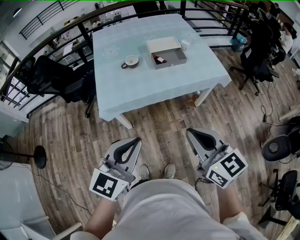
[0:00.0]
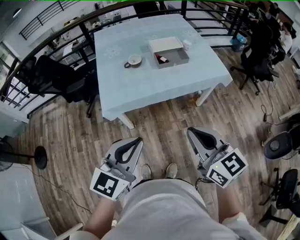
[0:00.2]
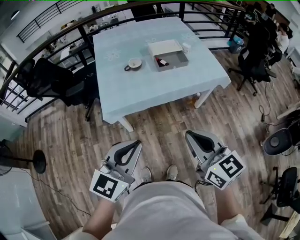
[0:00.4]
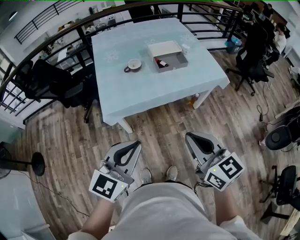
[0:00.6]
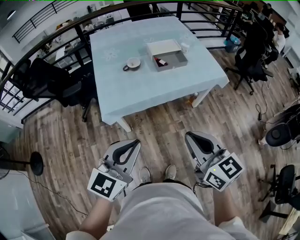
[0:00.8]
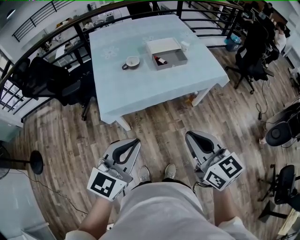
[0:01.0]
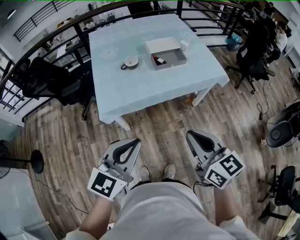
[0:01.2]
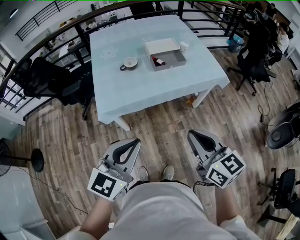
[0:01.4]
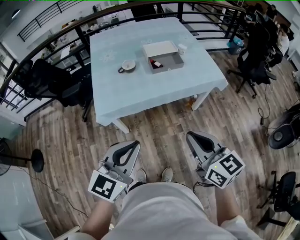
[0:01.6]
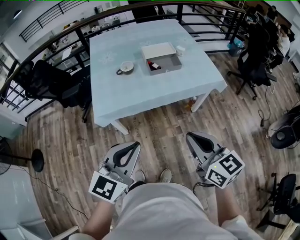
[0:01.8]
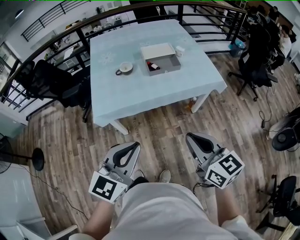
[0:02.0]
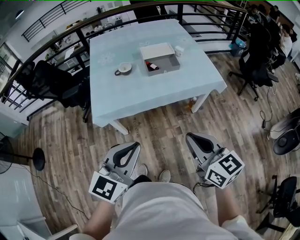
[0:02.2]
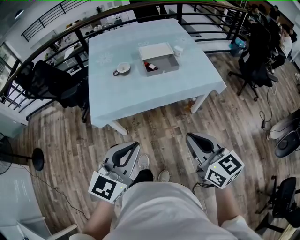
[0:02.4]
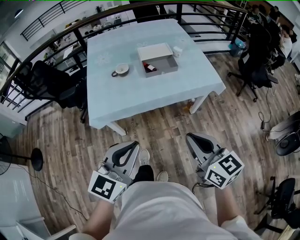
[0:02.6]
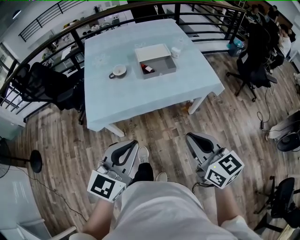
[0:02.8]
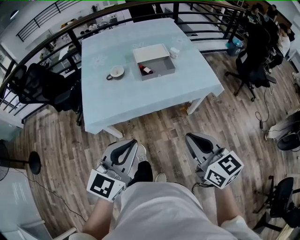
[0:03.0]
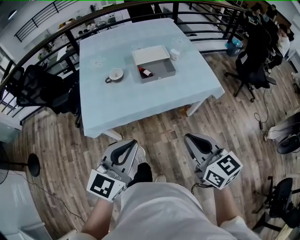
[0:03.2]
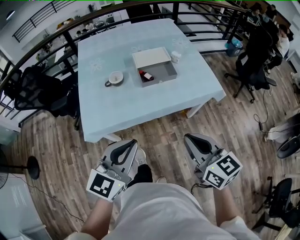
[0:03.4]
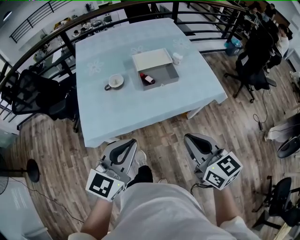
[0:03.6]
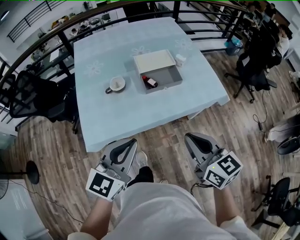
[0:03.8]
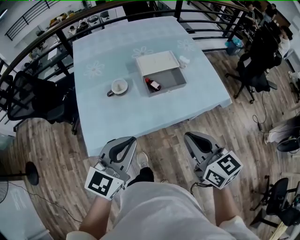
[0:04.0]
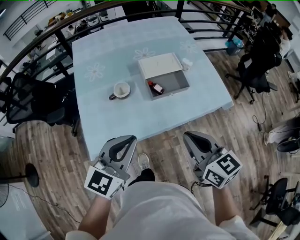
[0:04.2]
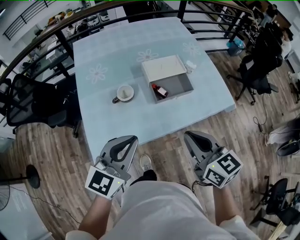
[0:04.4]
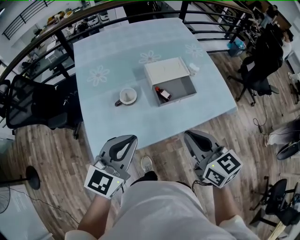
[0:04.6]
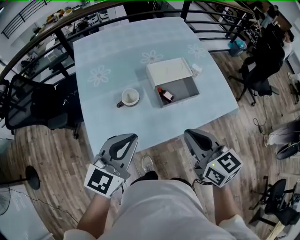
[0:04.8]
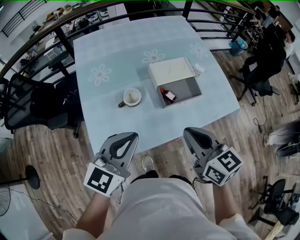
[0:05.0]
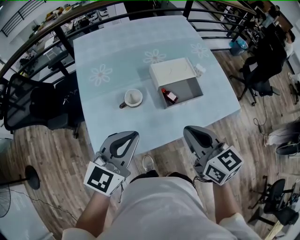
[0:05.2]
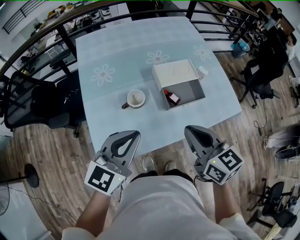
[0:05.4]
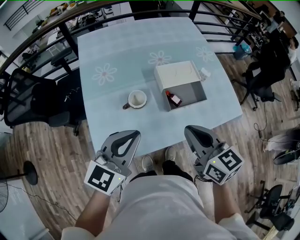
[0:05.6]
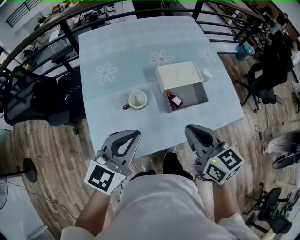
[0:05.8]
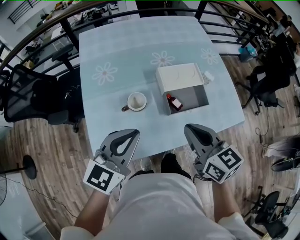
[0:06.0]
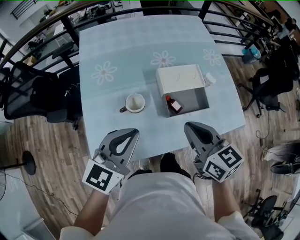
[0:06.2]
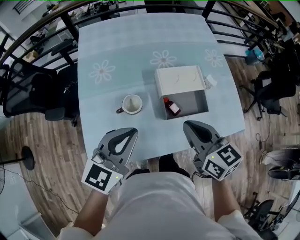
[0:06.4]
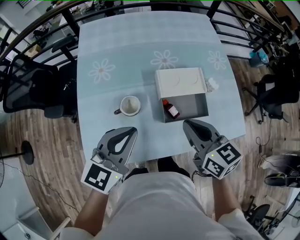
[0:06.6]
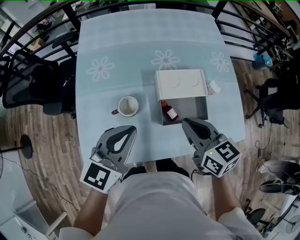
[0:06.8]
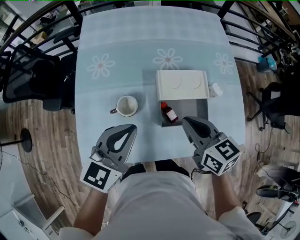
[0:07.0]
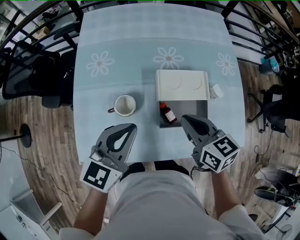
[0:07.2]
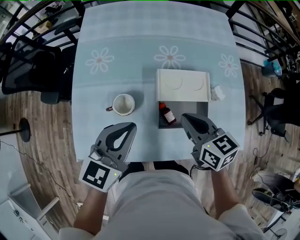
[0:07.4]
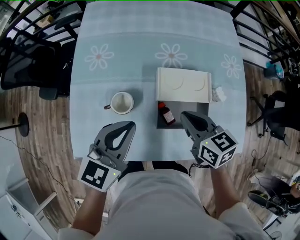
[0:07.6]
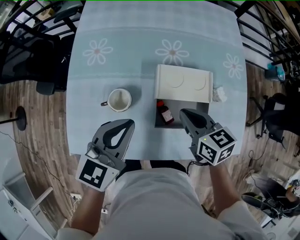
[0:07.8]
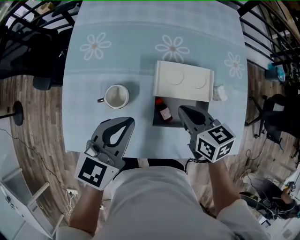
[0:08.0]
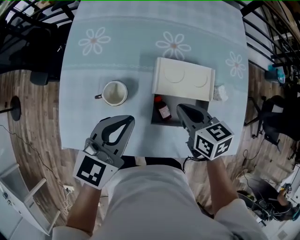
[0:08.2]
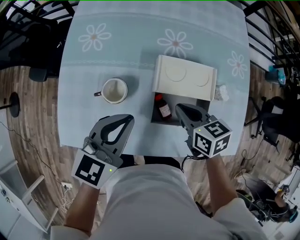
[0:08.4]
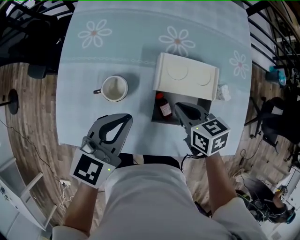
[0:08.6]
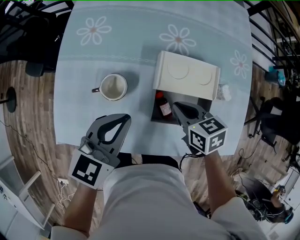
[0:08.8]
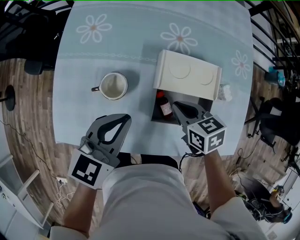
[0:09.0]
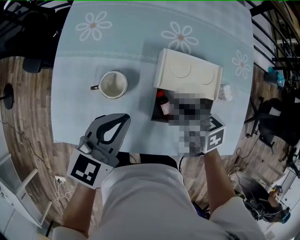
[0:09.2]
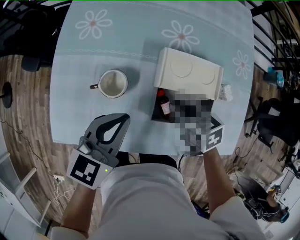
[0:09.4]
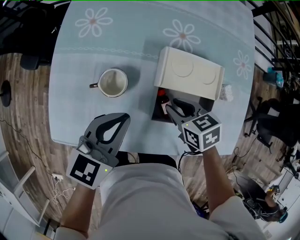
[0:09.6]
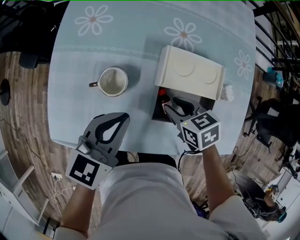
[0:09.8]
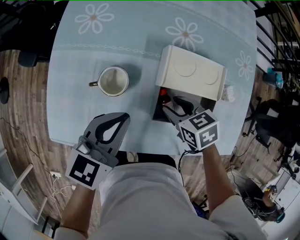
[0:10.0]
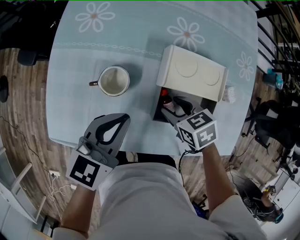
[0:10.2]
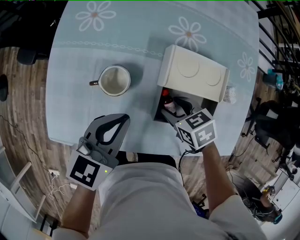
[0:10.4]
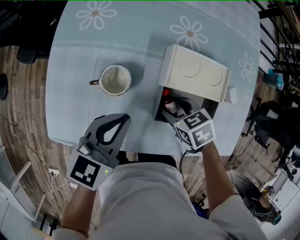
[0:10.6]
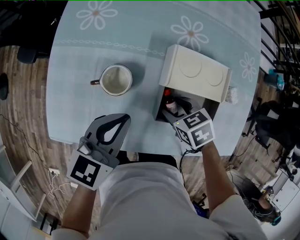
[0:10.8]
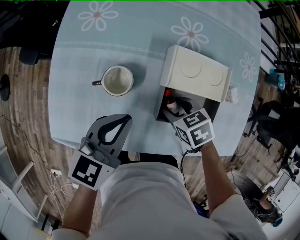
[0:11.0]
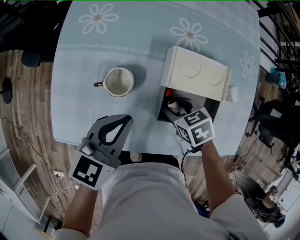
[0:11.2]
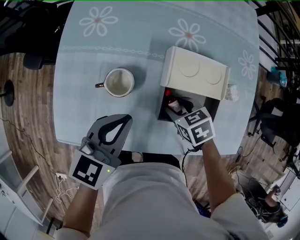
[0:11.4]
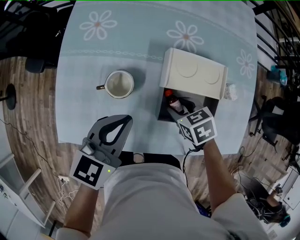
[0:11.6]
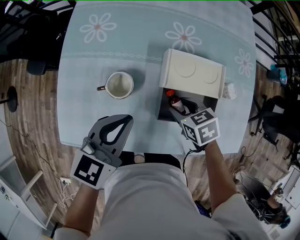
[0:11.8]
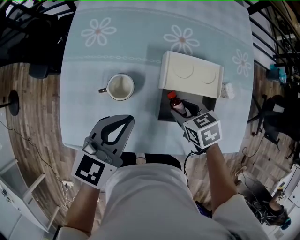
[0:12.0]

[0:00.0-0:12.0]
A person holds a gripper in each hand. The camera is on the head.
0:00.0 to 0:01.6: The grippers move only a little.
0:01.6 to 0:03.0: The left gripper is displaced forward and to the right by some 10 cm, while the right gripper moves to the right and forward, some 10 cm.
0:03.0 to 0:04.4: Both grippers move forward and to the left, roughly 30 cm.
0:04.4 to 0:06.0: The two grippers go roughly 15 cm forward and to the left.
0:06.0 to 0:07.6: The right gripper moves forward, downward and to the right, about 25 cm, and turns by about 20 degrees. Meanwhile the left gripper shifts roughly 15 cm forward, to the right and downward.
0:07.6 to 0:09.0: The right gripper moves downward, roughly 10 cm. Meanwhile the left gripper moves downward, about 5 cm.
0:09.0 to 0:10.4: The right gripper goes approximately 5 cm downward, and opens its fingers.
0:10.4 to 0:12.0: The grippers stay close to where they were, moving slightly.

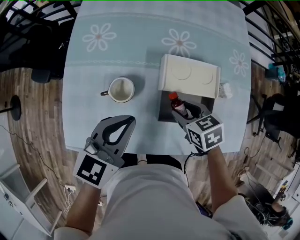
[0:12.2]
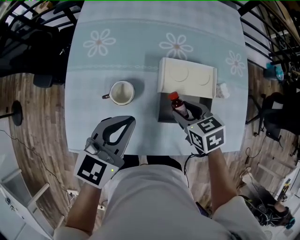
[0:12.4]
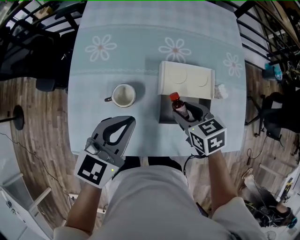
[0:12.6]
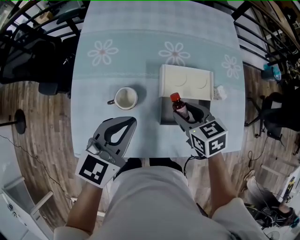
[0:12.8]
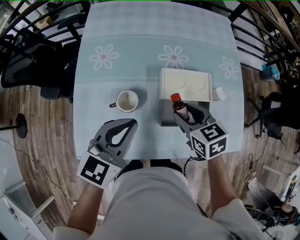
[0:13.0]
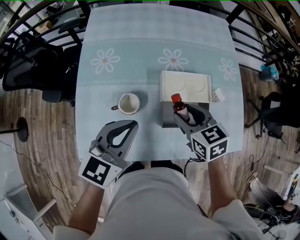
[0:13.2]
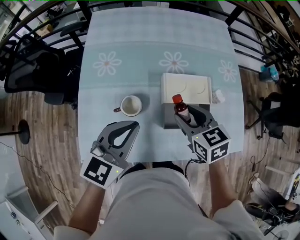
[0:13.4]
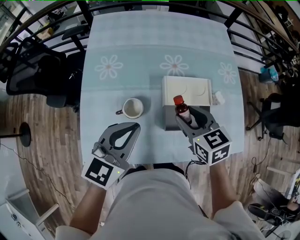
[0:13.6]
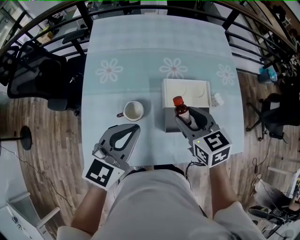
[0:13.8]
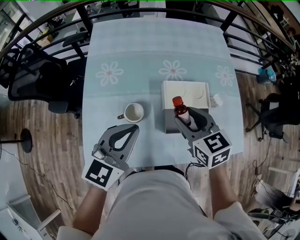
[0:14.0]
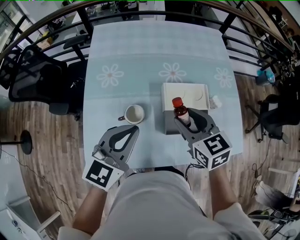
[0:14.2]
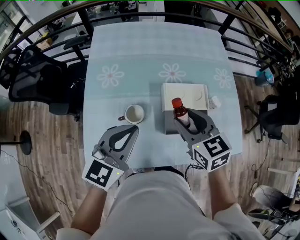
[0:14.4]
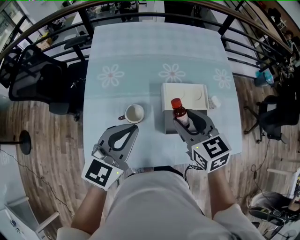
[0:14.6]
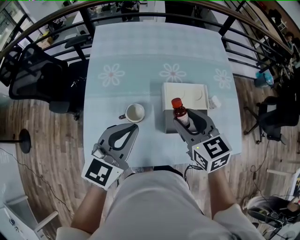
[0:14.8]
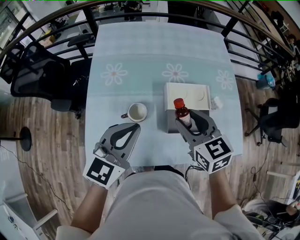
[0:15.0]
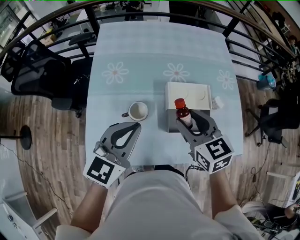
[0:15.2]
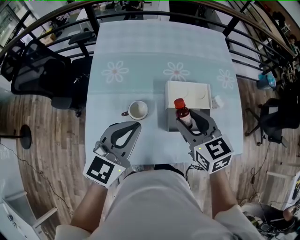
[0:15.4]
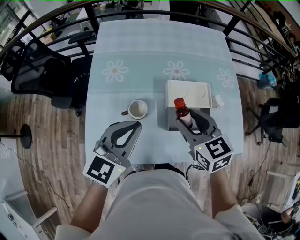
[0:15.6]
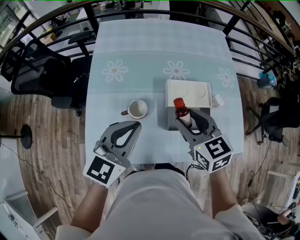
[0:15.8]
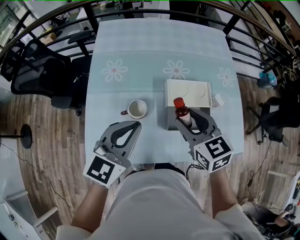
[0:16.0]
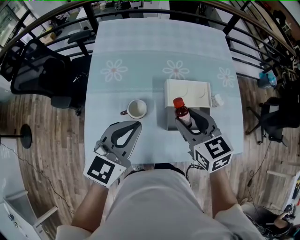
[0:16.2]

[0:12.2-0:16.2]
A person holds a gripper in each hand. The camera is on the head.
0:12.2 to 0:13.6: The left gripper moves upward, roughly 10 cm, while the right gripper shifts approximately 15 cm upward, and swivels roughly 20 degrees.
0:13.6 to 0:14.8: The right gripper goes approximately 5 cm upward.
0:14.8 to 0:16.2: Both grippers stay about where they are.

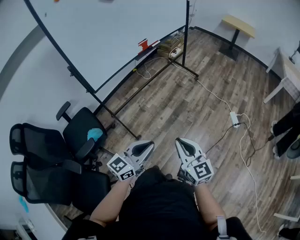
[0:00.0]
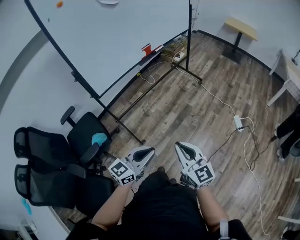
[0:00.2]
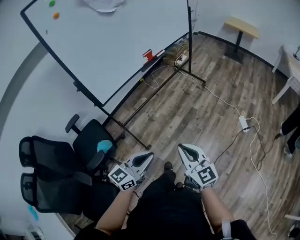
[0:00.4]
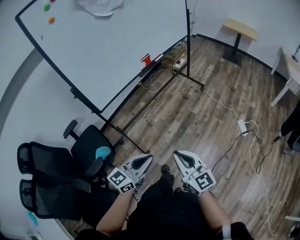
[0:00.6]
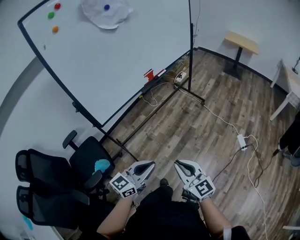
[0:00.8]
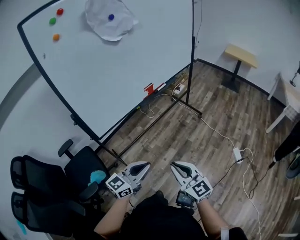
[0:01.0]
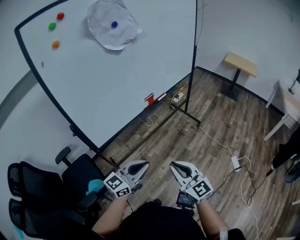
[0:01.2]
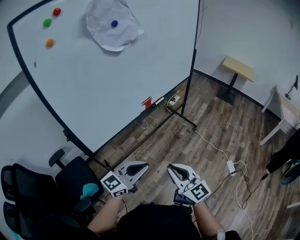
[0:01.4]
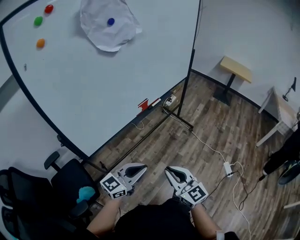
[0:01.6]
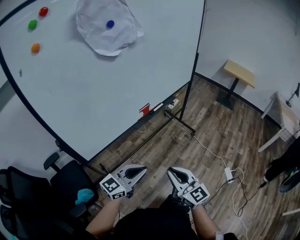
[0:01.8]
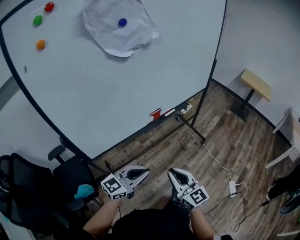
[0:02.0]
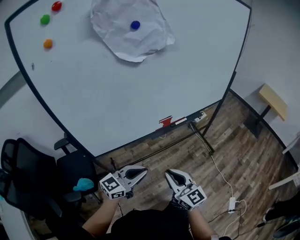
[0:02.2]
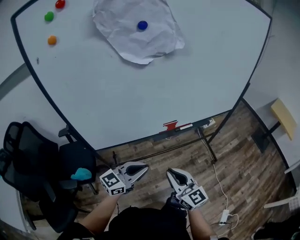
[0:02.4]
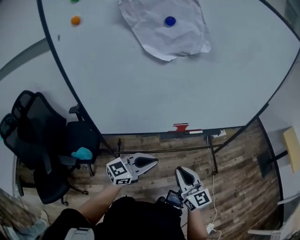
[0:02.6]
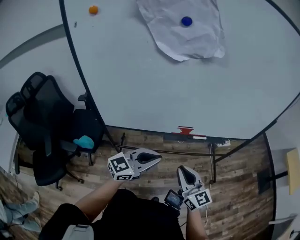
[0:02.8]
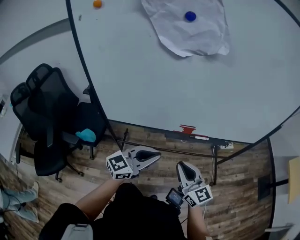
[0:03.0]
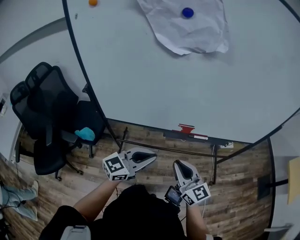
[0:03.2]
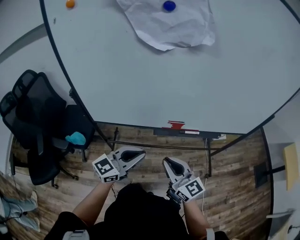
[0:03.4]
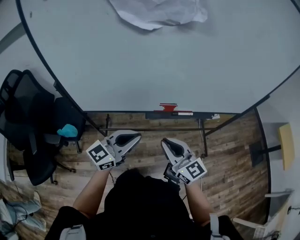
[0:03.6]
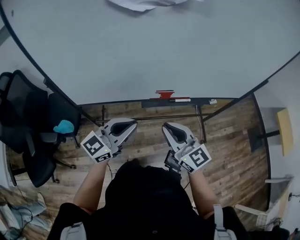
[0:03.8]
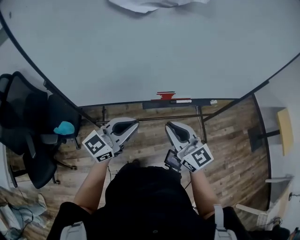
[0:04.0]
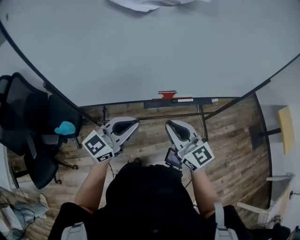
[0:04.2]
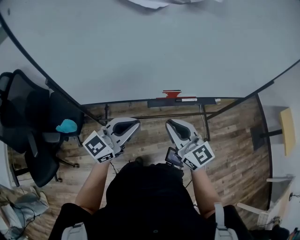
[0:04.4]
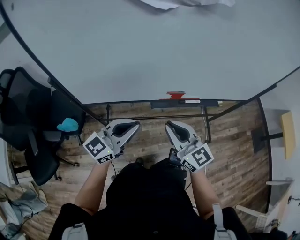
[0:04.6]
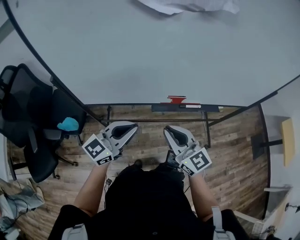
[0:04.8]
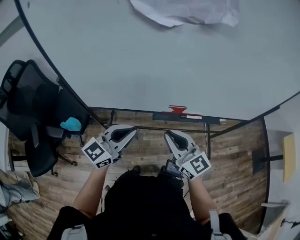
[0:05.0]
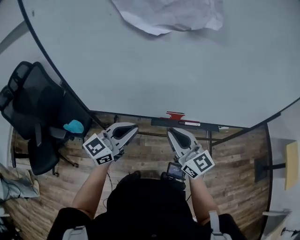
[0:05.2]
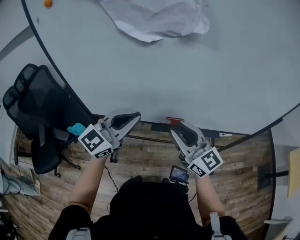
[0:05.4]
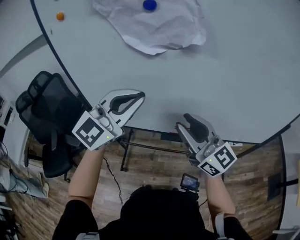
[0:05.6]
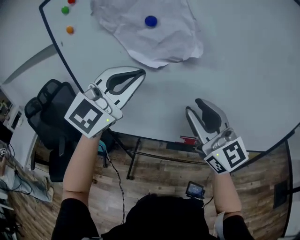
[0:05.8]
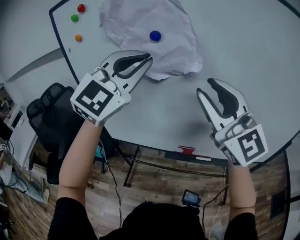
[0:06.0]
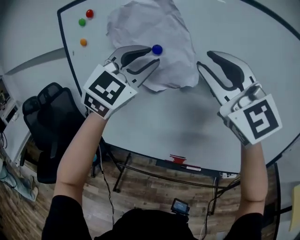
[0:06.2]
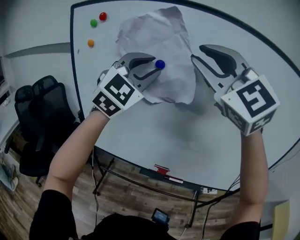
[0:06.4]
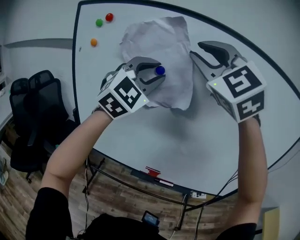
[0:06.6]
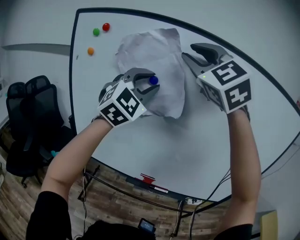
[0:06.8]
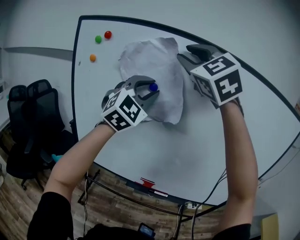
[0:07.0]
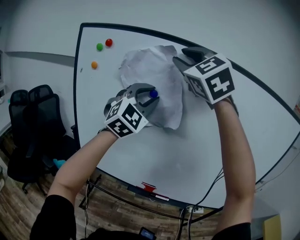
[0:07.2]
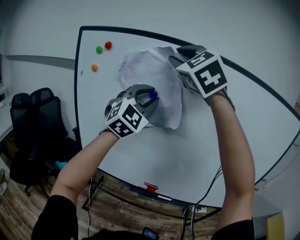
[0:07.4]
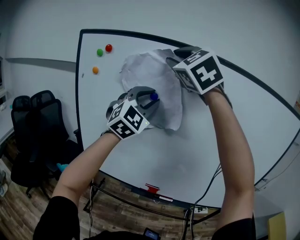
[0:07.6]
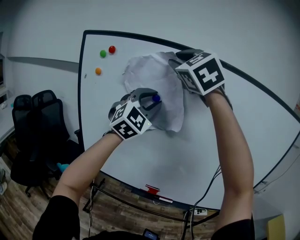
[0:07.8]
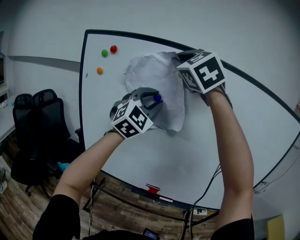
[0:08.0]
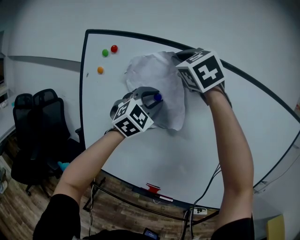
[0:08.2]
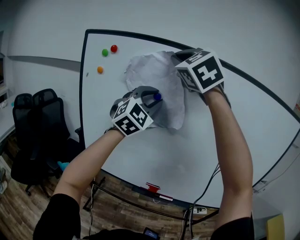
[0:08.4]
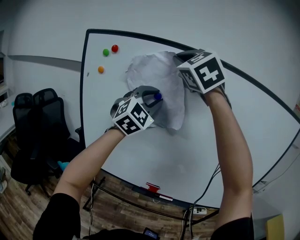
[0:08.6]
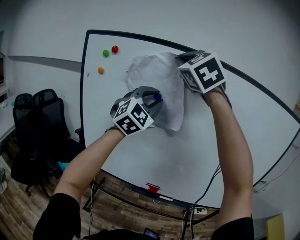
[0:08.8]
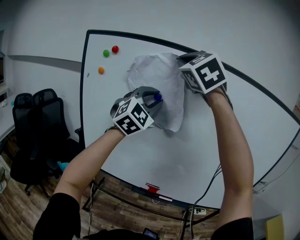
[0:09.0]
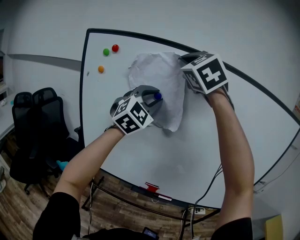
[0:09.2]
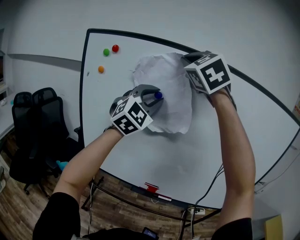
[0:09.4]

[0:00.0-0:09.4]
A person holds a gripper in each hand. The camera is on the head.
0:00.0 to 0:01.6: The grippers both shift forward by about 30 cm.
0:01.6 to 0:03.2: The left gripper changes place by some 20 cm, and changes its angle by approximately 40 degrees, while the right gripper changes place by approximately 30 cm, and swivels about 50 degrees.
0:03.2 to 0:04.8: The left gripper travels to the left and forward by approximately 10 cm. The right gripper shifts about 5 cm forward.
0:04.8 to 0:06.2: Both grippers move upward, roughly 50 cm. The right gripper twists roughly 50 degrees counterclockwise, seen from behind, and opens; the left gripper twists roughly 60 degrees clockwise, seen from behind, and opens.
0:06.2 to 0:07.8: The right gripper goes some 20 cm upward, forward and to the left, and changes its angle by some 30 degrees.
0:07.8 to 0:09.4: The right gripper closes up.
